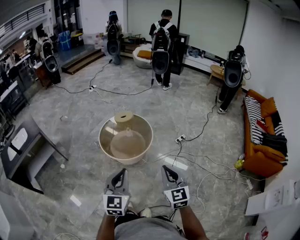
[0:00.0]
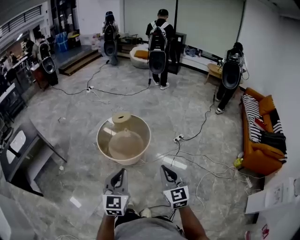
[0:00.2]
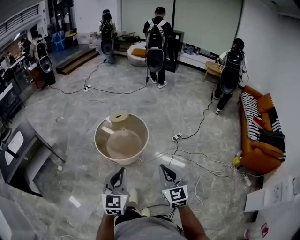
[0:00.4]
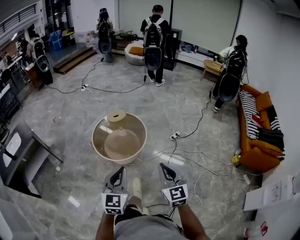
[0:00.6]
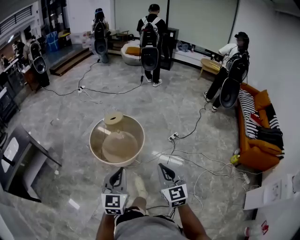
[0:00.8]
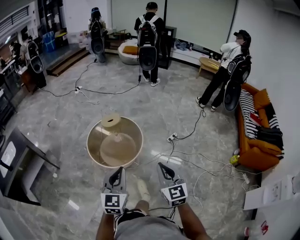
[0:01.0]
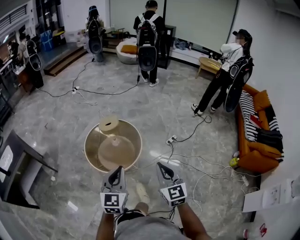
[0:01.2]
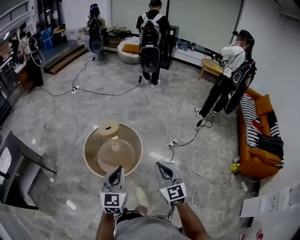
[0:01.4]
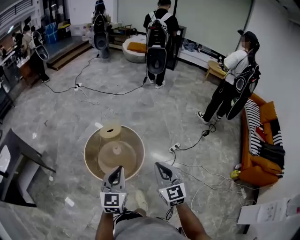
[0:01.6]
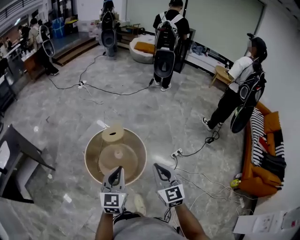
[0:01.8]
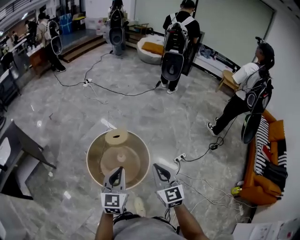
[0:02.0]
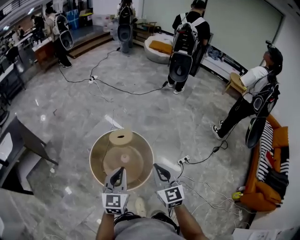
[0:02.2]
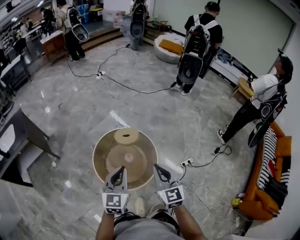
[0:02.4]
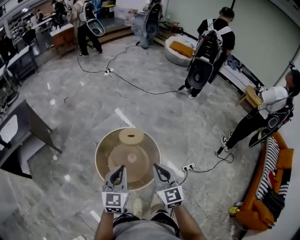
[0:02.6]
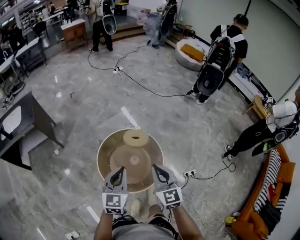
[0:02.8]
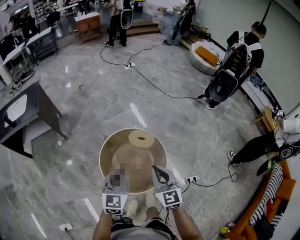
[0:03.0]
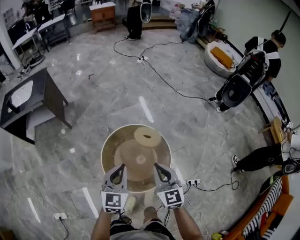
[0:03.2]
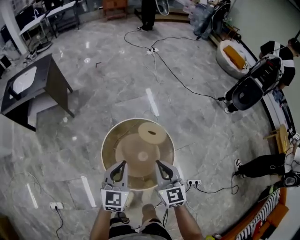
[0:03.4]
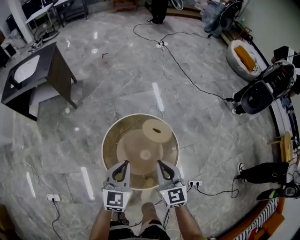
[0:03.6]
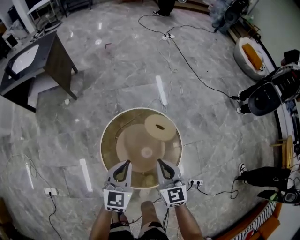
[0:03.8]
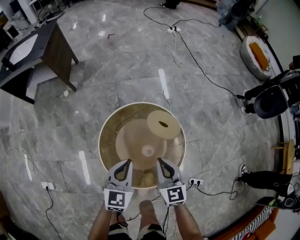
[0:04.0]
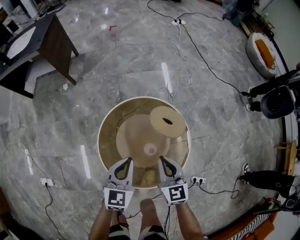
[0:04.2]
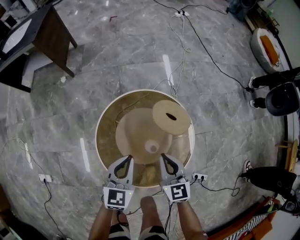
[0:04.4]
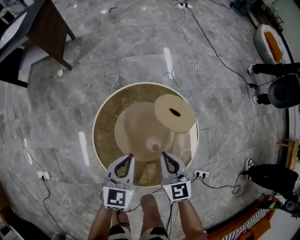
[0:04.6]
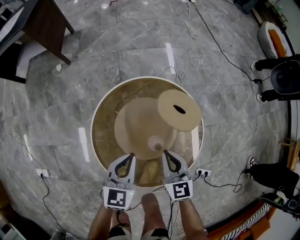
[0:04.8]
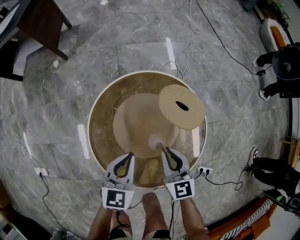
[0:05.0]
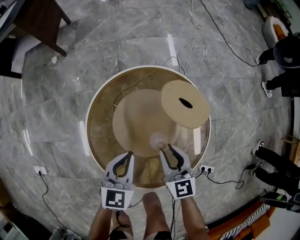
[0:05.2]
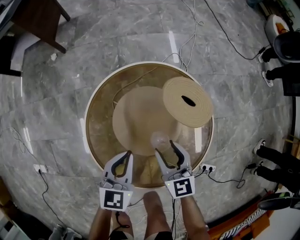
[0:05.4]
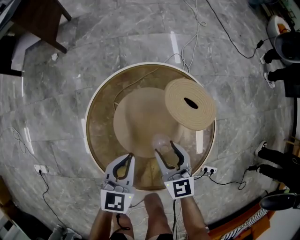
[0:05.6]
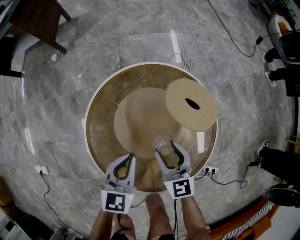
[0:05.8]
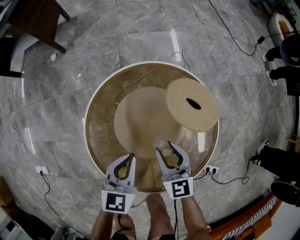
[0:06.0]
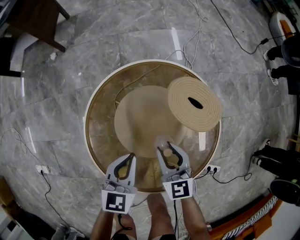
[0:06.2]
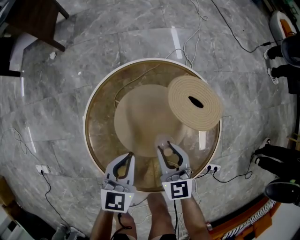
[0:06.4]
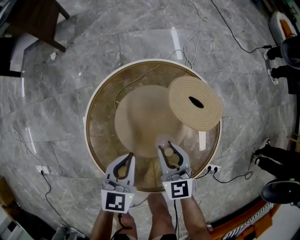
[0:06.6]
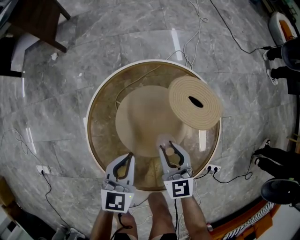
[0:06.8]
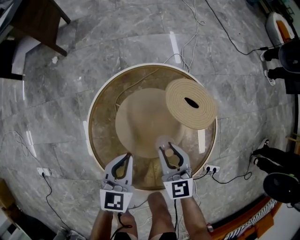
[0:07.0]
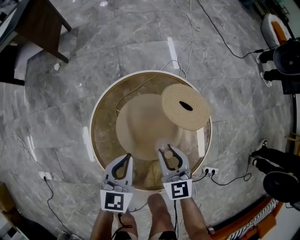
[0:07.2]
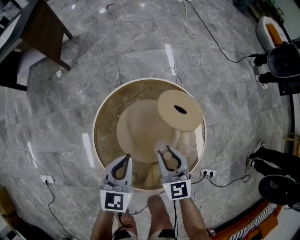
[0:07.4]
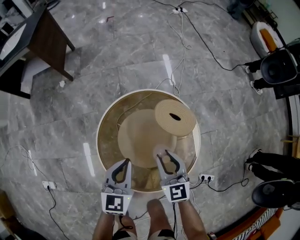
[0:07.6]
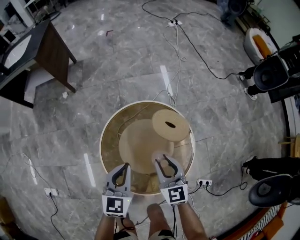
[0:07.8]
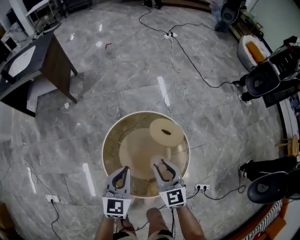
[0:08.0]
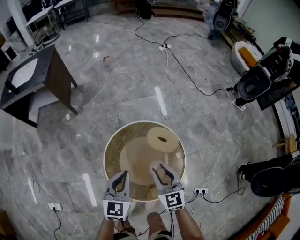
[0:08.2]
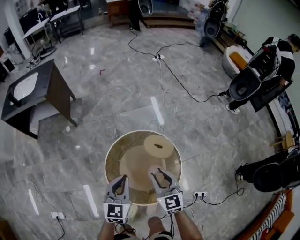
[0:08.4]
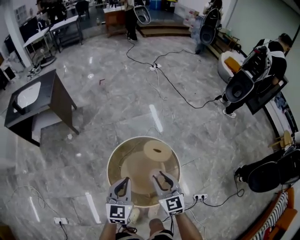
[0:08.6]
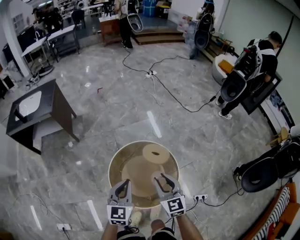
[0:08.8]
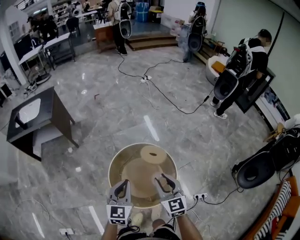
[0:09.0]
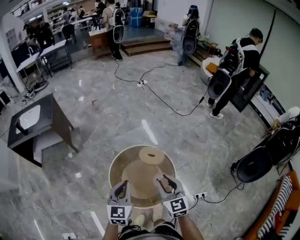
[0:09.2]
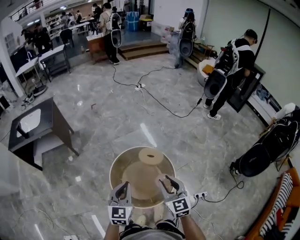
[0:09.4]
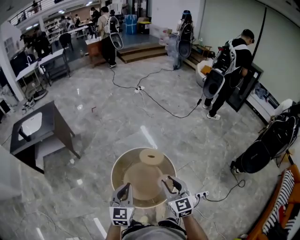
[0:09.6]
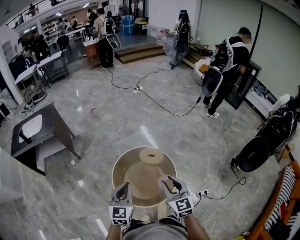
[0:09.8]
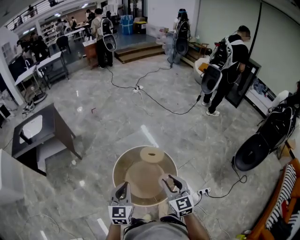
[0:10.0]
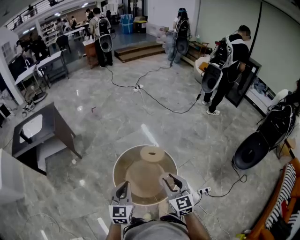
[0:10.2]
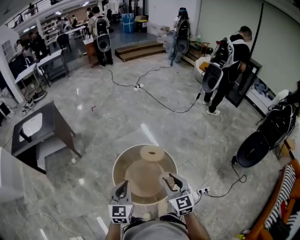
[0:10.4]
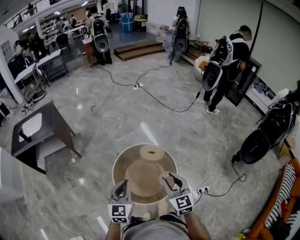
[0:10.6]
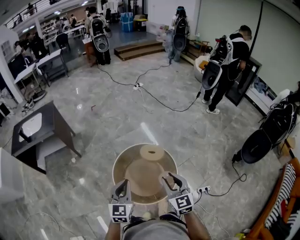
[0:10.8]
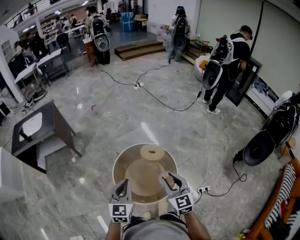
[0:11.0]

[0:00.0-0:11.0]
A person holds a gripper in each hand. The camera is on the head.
0:00.0 to 0:01.6: Both grippers travel together forward, roughly 30 cm.
0:01.6 to 0:03.2: The left gripper changes place by approximately 30 cm, and swivels about 30 degrees; the right gripper shifts by roughly 35 cm, and changes its angle by some 40 degrees.
0:03.2 to 0:04.8: Both grippers move downward, about 40 cm. The left gripper swivels some 20 degrees, while the right gripper turns by about 20 degrees.
0:04.8 to 0:06.2: Both grippers move downward, roughly 10 cm. The right gripper opens.
0:06.2 to 0:07.8: Both grippers move upward, some 20 cm.
0:07.8 to 0:09.4: Both grippers move upward and backward, some 35 cm. The left gripper swivels some 20 degrees.
0:09.4 to 0:11.0: The grippers make only small movements.

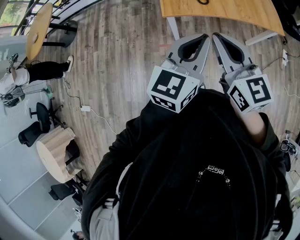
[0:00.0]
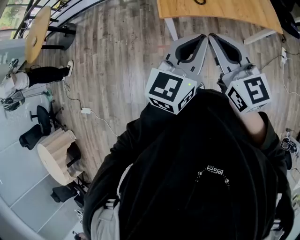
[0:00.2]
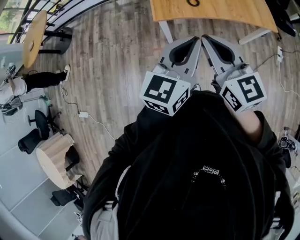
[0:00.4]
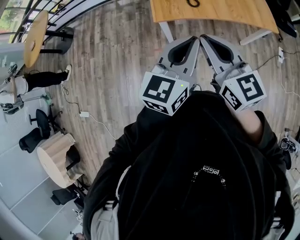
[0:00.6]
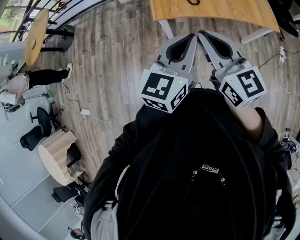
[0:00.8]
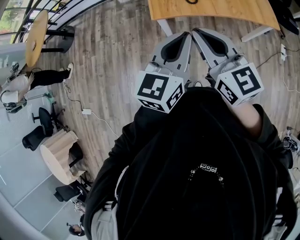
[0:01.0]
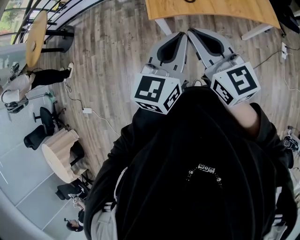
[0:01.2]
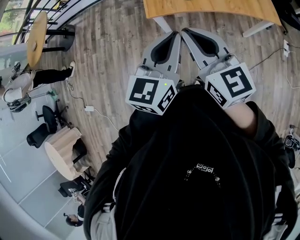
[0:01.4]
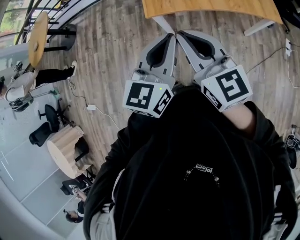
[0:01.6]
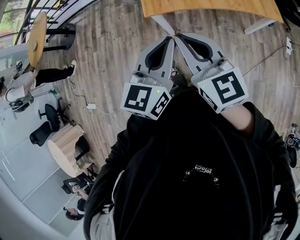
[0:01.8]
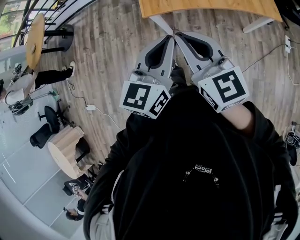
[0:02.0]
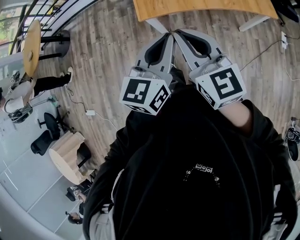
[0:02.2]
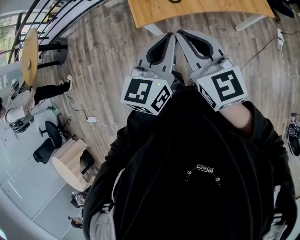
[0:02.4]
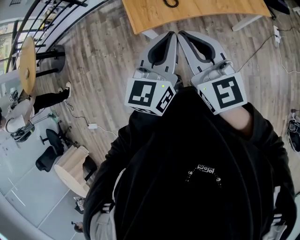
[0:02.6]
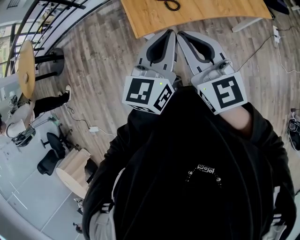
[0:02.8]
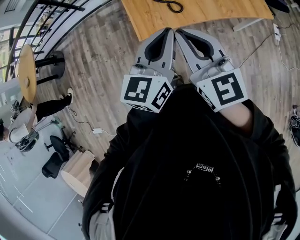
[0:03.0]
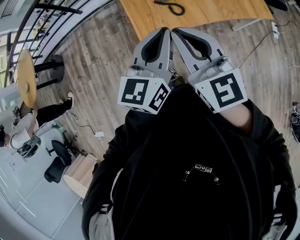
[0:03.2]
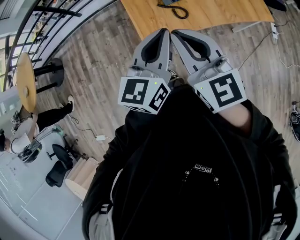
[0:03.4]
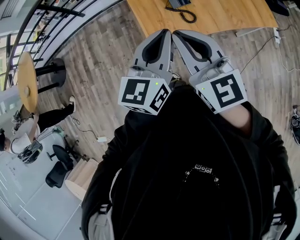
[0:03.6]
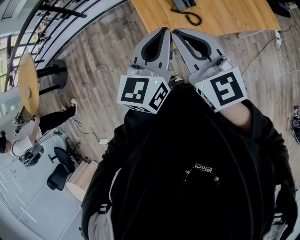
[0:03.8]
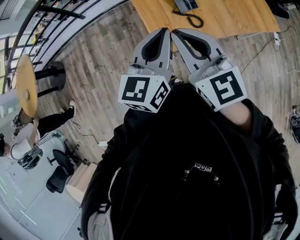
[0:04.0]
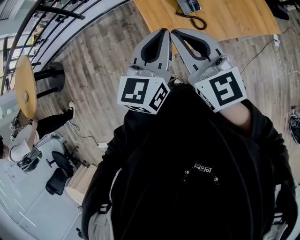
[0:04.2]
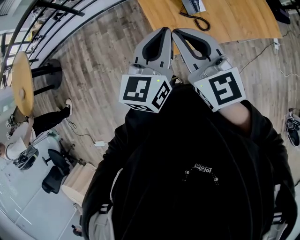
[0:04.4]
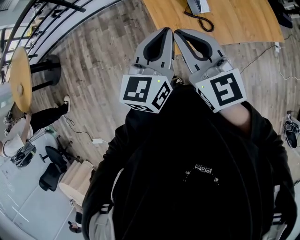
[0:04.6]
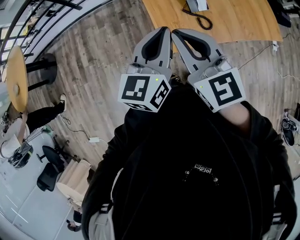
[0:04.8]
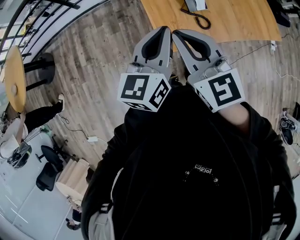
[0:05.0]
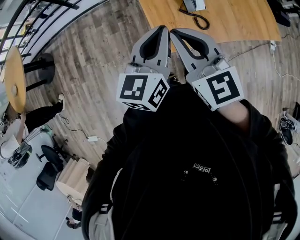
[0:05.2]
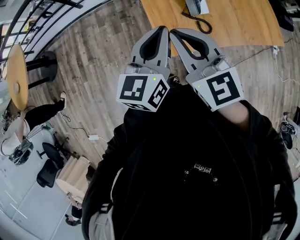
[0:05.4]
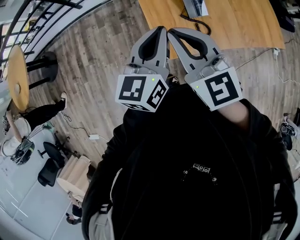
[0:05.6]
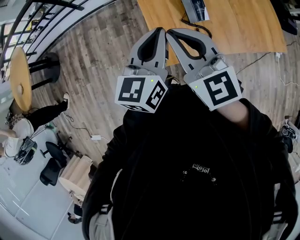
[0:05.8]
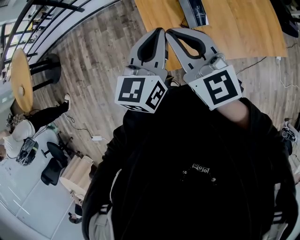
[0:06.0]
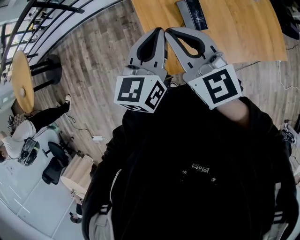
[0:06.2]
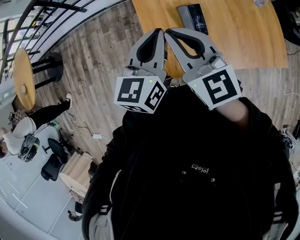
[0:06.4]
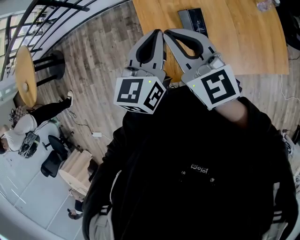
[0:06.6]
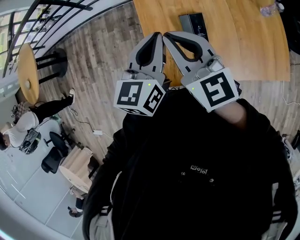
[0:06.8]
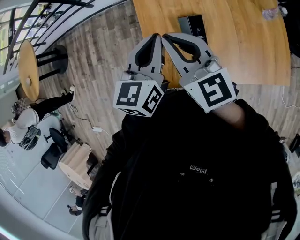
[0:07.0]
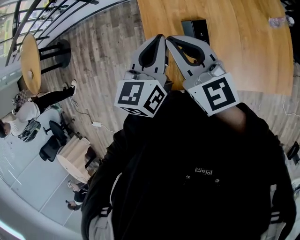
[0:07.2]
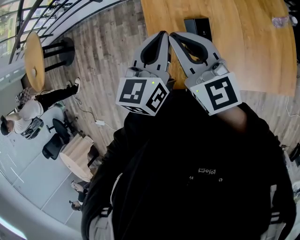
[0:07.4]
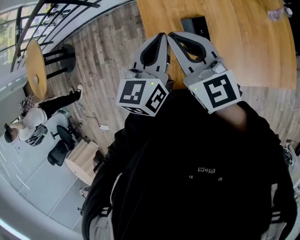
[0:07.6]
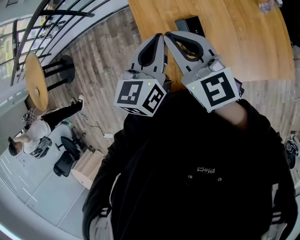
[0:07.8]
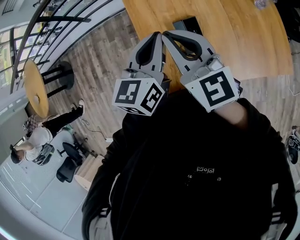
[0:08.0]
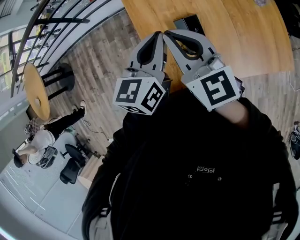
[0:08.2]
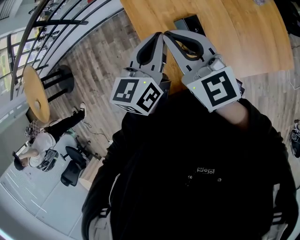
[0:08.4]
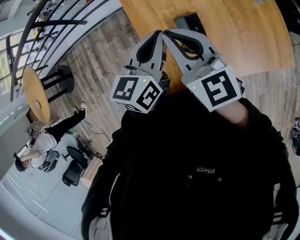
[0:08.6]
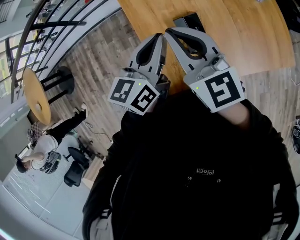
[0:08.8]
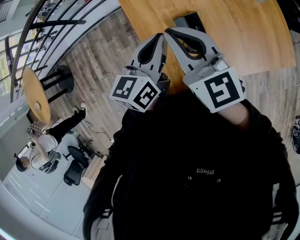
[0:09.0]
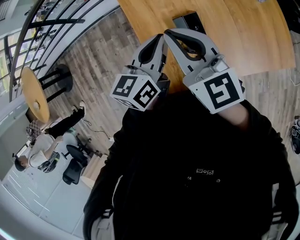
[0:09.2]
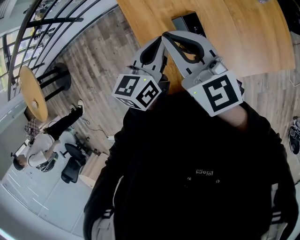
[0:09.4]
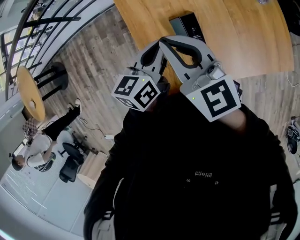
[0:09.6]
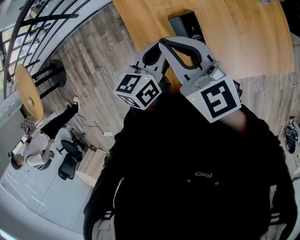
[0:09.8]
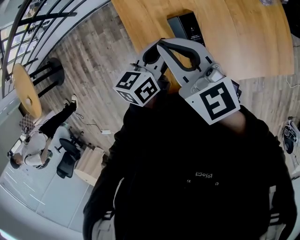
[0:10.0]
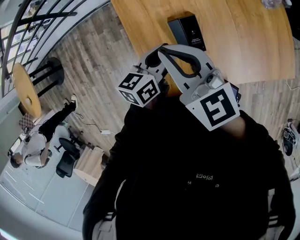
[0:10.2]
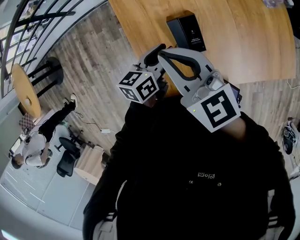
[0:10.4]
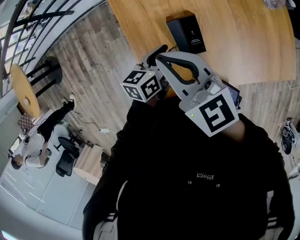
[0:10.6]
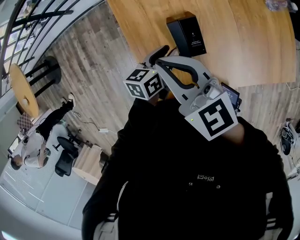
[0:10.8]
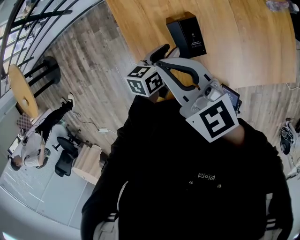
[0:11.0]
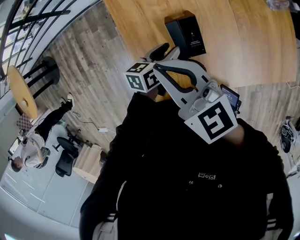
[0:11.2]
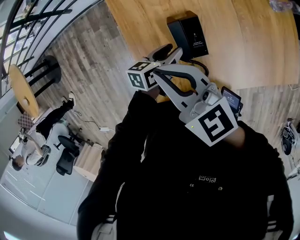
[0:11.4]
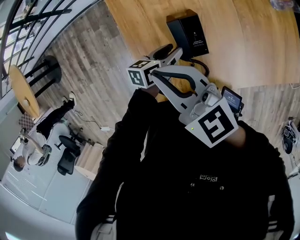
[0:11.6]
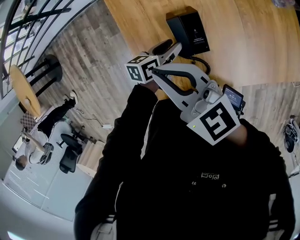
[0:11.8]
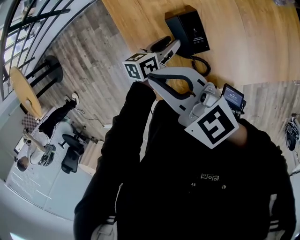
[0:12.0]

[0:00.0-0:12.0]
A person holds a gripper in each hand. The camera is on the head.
0:00.0 to 0:01.6: The left gripper shifts by some 5 cm.
0:01.6 to 0:03.0: The two grippers go some 15 cm forward.
0:03.0 to 0:04.4: Both grippers move to the left and forward, approximately 20 cm.
0:04.4 to 0:06.0: The two grippers go about 15 cm forward.
0:06.0 to 0:07.6: Both grippers move forward and to the right, about 15 cm.
0:07.6 to 0:09.0: The grippers move only a little.
0:09.0 to 0:10.4: The left gripper is displaced downward by about 15 cm, rotates some 20 degrees, and opens. Meanwhile the right gripper travels downward by approximately 5 cm.
0:10.4 to 0:12.0: The right gripper changes place by about 5 cm; the left gripper shifts roughly 10 cm downward.

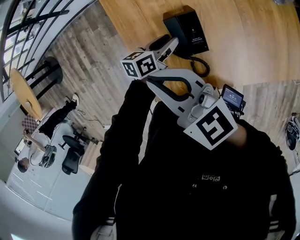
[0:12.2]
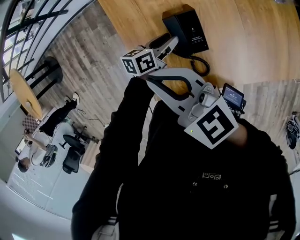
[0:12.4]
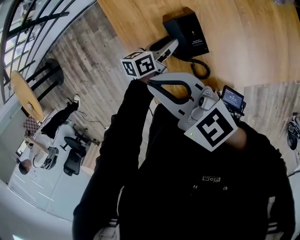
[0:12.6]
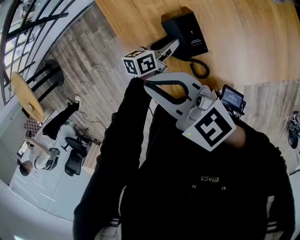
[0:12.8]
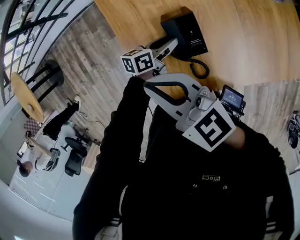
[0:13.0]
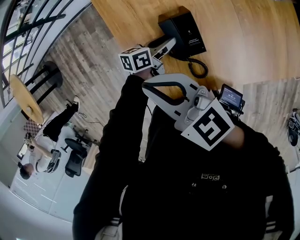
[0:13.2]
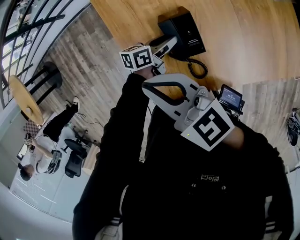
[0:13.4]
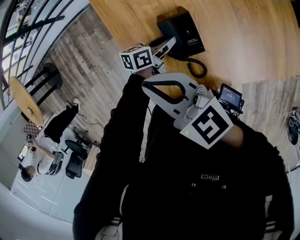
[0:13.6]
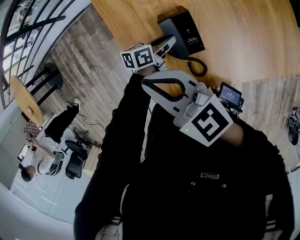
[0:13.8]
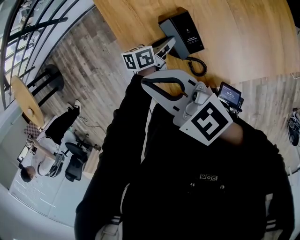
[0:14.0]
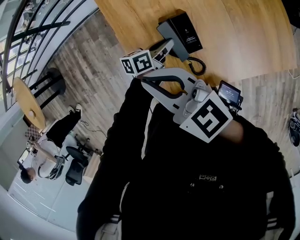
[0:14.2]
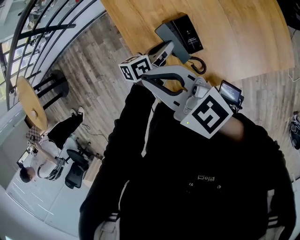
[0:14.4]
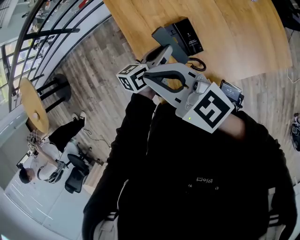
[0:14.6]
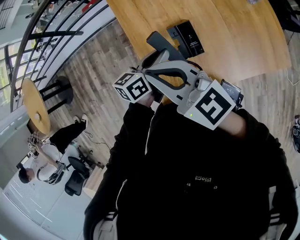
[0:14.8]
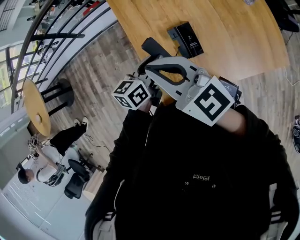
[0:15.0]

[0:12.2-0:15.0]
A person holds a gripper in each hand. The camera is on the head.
0:12.2 to 0:13.6: The grippers stay close to where they were, moving slightly.
0:13.6 to 0:15.0: The left gripper shifts some 25 cm upward, and rotates about 30 degrees; the right gripper travels upward by approximately 15 cm.